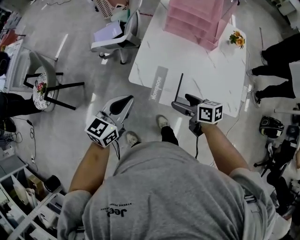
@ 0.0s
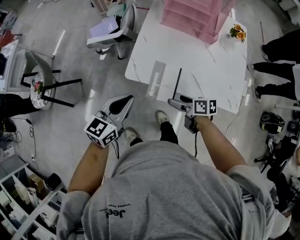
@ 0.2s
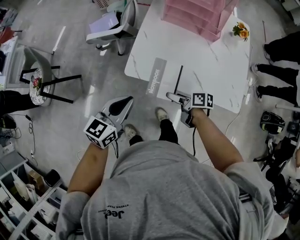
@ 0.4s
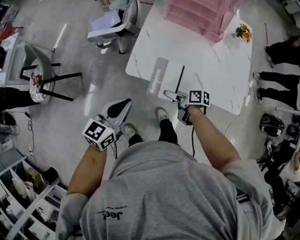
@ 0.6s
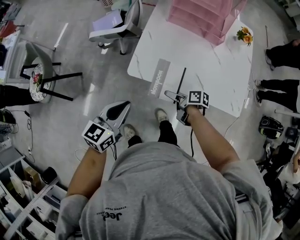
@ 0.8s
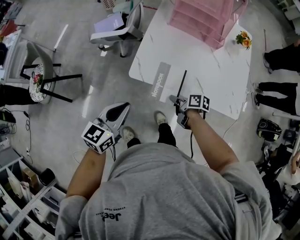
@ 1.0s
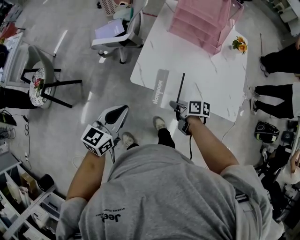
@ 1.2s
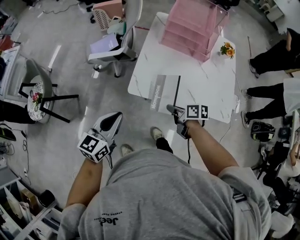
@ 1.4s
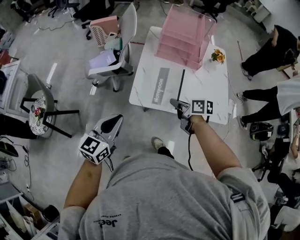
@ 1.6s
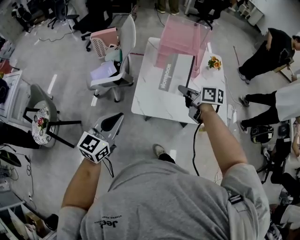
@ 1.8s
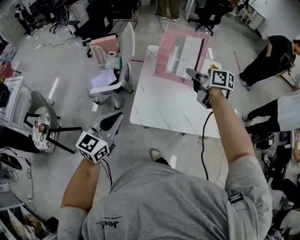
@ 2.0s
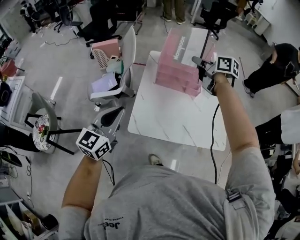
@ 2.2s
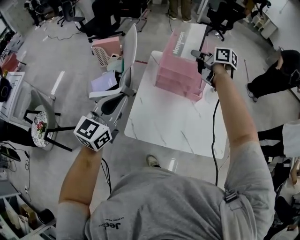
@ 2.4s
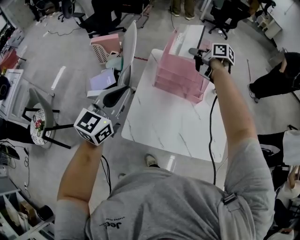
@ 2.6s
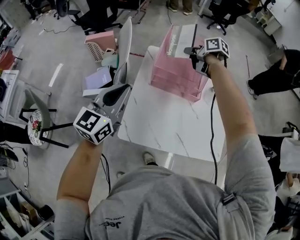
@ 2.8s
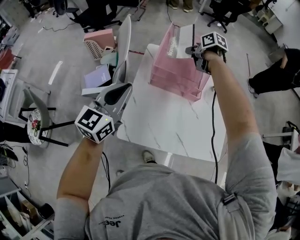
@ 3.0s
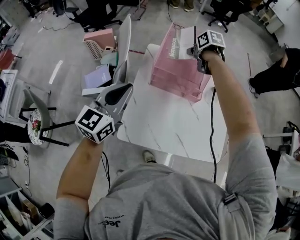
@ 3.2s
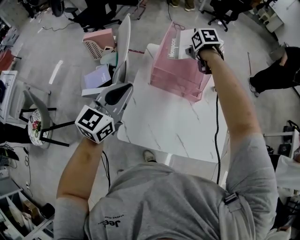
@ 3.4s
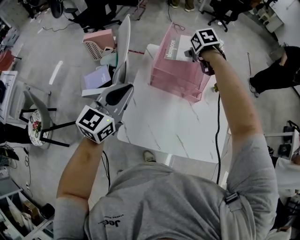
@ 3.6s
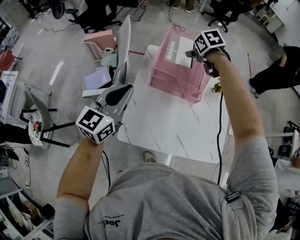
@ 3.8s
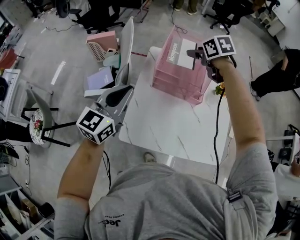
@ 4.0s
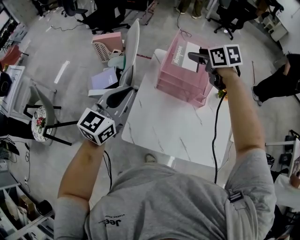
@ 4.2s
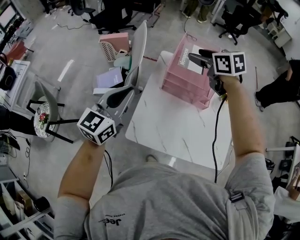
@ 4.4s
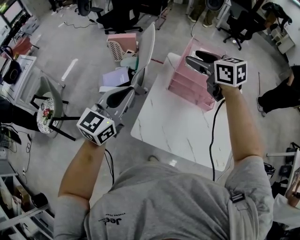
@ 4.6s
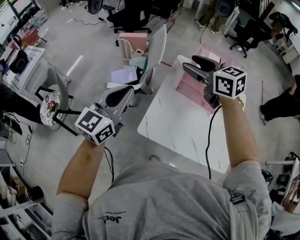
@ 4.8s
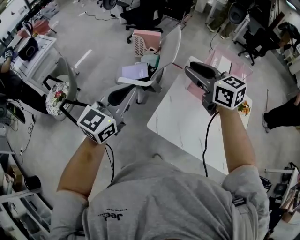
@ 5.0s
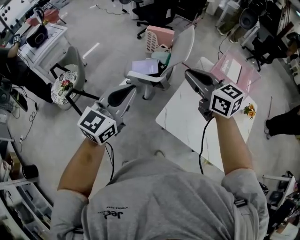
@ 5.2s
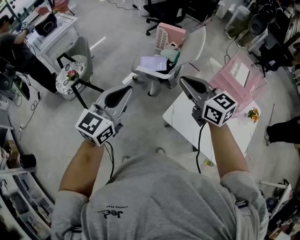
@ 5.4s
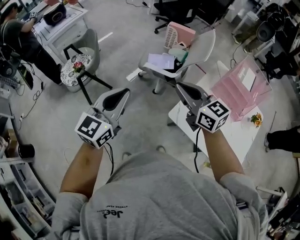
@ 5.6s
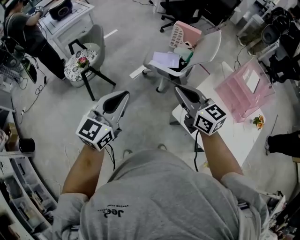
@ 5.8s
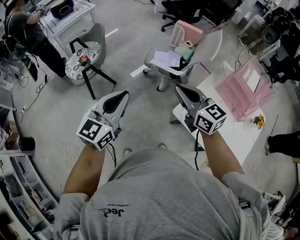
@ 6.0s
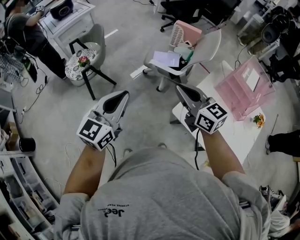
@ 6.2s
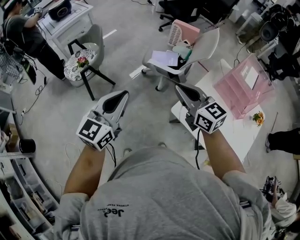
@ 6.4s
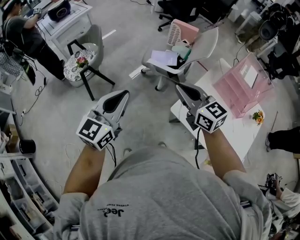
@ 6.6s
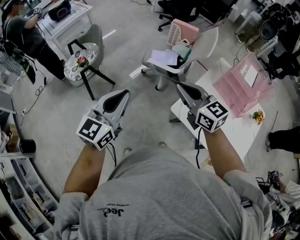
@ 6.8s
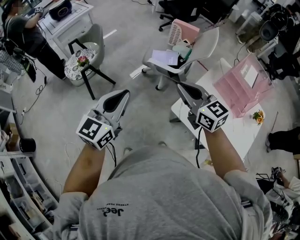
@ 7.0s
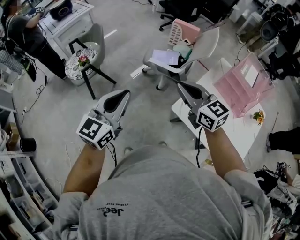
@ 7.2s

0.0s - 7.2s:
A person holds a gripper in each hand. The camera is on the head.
0.0s - 1.4s: The right gripper goes downward and returns, about 15 cm each way, and closes up. Meanwhile the left gripper goes approximately 5 cm to the left.
1.4s - 2.8s: The left gripper is displaced forward, upward and to the right by roughly 35 cm, while the right gripper shifts roughly 50 cm forward and upward.
2.8s - 4.4s: The right gripper moves upward, backward and to the left, about 15 cm, rolls counterclockwise, seen from behind, by about 40 degrees, and opens its fingers.
4.4s - 5.8s: The right gripper moves approximately 50 cm, rotates approximately 40 degrees, and closes its fingers; the left gripper shifts by approximately 40 cm, and changes its angle by roughly 30 degrees.
5.8s - 7.2s: There are only small adjustments of the grippers.

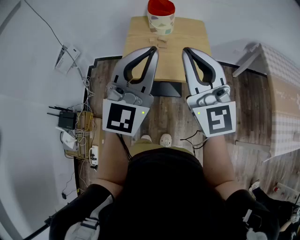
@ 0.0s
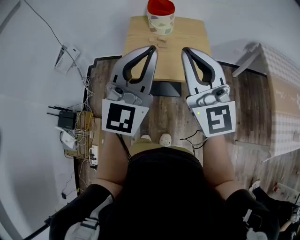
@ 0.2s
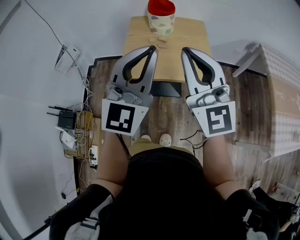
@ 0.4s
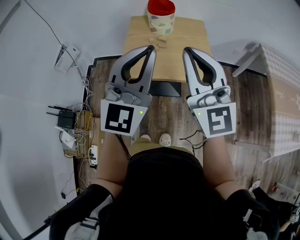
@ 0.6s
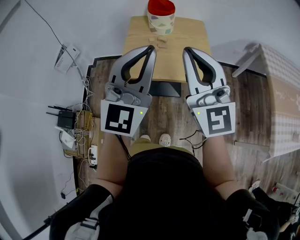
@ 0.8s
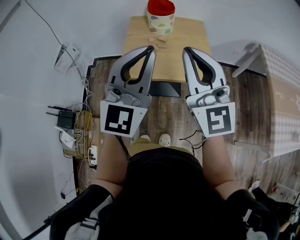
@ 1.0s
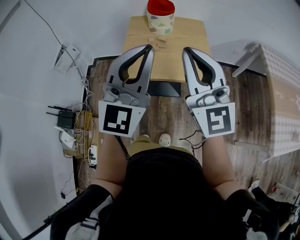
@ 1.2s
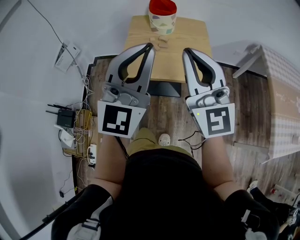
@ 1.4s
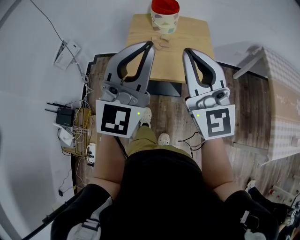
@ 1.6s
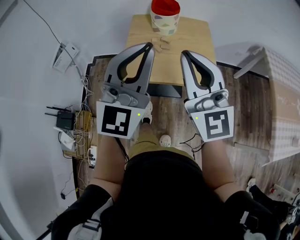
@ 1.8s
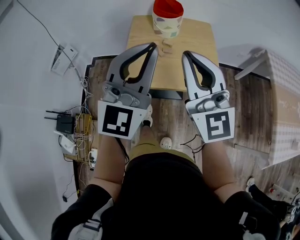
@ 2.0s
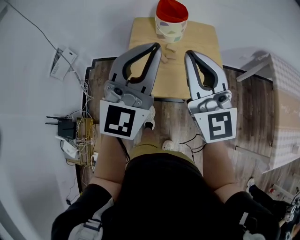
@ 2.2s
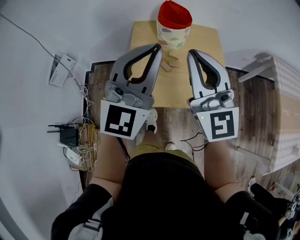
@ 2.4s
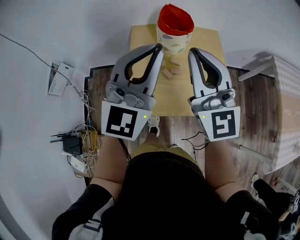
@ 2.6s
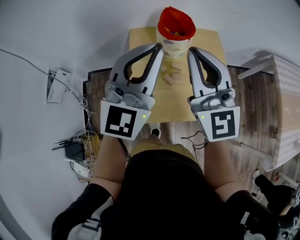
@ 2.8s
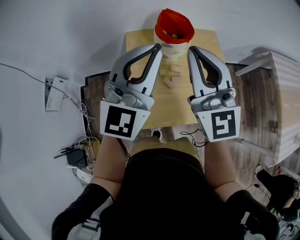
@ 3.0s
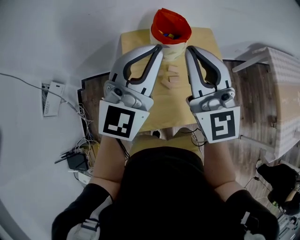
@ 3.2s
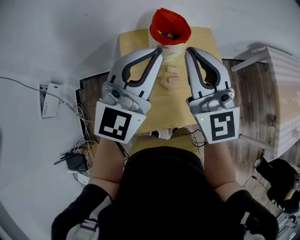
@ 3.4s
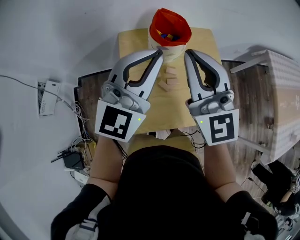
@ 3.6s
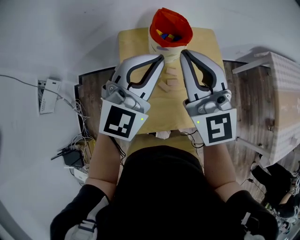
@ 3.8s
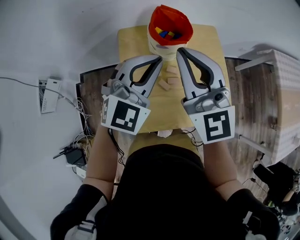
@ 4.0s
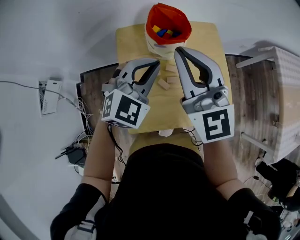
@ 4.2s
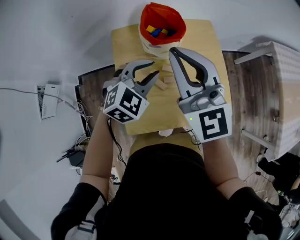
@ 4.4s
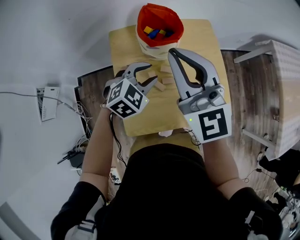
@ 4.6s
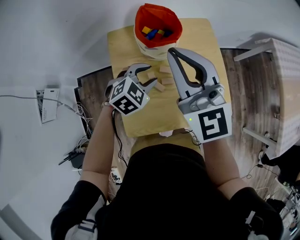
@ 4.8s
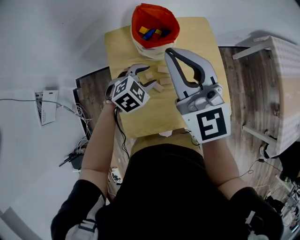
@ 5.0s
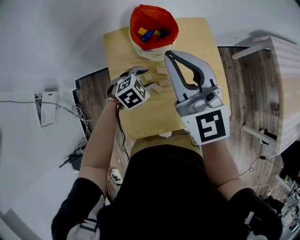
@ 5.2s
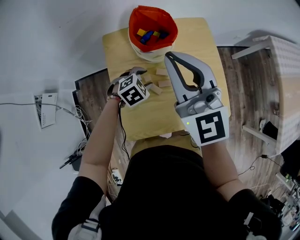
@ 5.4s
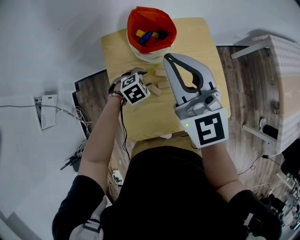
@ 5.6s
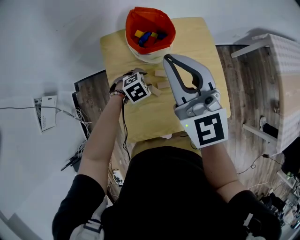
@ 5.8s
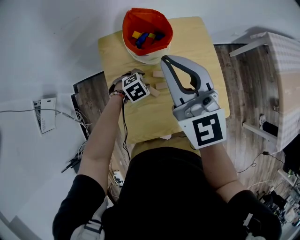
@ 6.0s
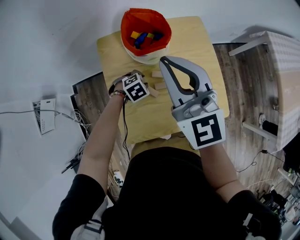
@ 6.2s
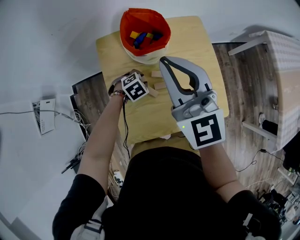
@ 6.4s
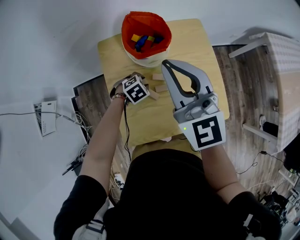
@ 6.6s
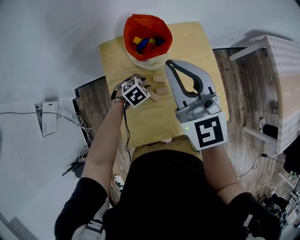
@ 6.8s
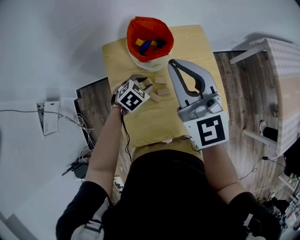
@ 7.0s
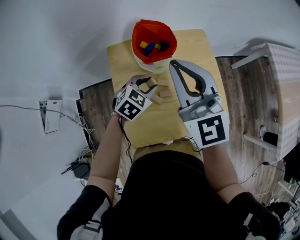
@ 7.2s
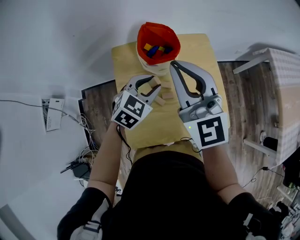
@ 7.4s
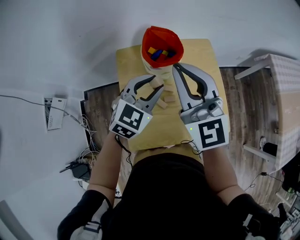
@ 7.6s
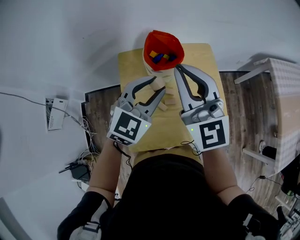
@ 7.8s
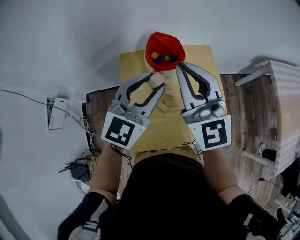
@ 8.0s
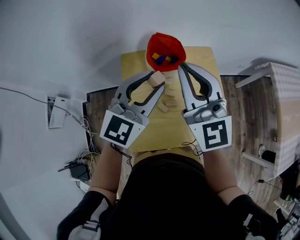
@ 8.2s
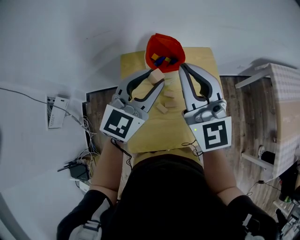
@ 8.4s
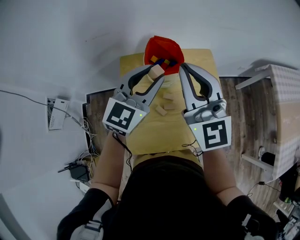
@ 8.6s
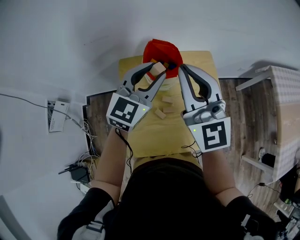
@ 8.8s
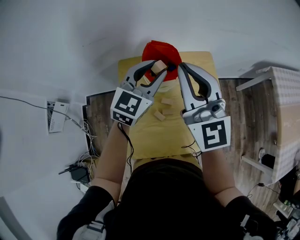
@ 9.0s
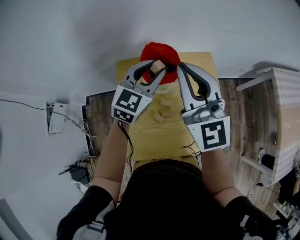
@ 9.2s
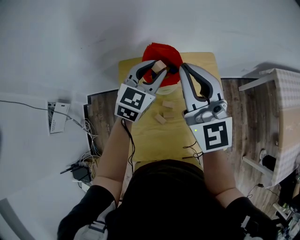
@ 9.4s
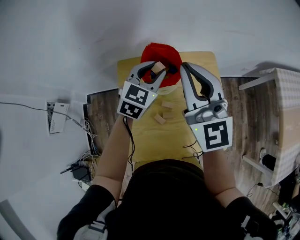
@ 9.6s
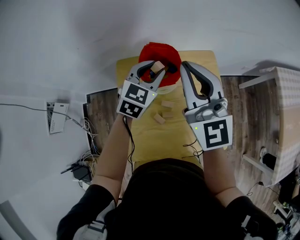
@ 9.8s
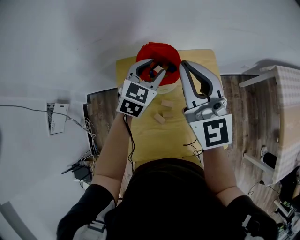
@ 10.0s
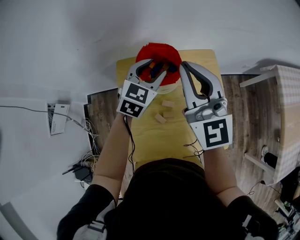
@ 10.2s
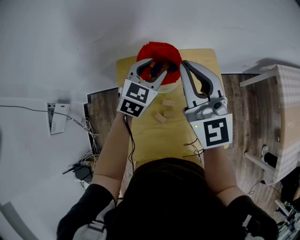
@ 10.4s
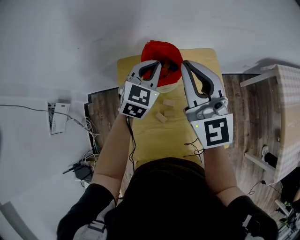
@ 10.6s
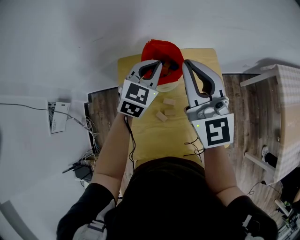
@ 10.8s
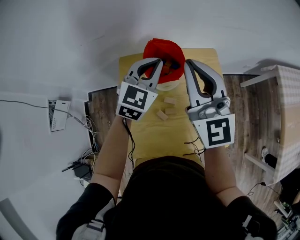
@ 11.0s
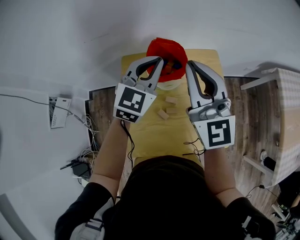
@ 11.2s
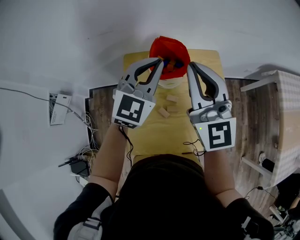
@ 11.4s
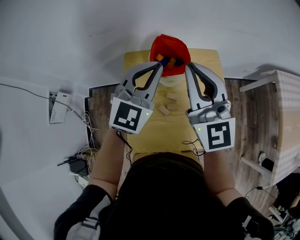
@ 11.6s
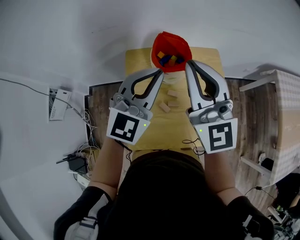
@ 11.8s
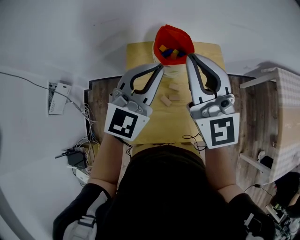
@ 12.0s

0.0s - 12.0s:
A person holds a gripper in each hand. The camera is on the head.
0.0s - 1.6s: There are only small adjustments of the grippers.
1.6s - 3.0s: The grippers both shift forward by some 30 cm.
3.0s - 4.4s: The left gripper shifts roughly 20 cm downward, and angles its fingers downward, by approximately 50 degrees. The right gripper goes about 10 cm forward and downward.
4.4s - 6.0s: The left gripper shifts some 25 cm downward, and tips its fingers downward by roughly 40 degrees.
6.0s - 7.6s: The left gripper is displaced upward by some 25 cm, and angles its fingers upward, by some 40 degrees.
7.6s - 9.0s: The right gripper changes place by about 5 cm. The left gripper is displaced forward and upward by approximately 10 cm.
9.0s - 10.4s: The right gripper moves approximately 5 cm. The left gripper goes about 10 cm downward and forward.
10.4s - 12.0s: The left gripper moves backward and upward, approximately 20 cm, changes its angle by roughly 30 degrees, and closes its fingers. Meanwhile the right gripper moves backward, roughly 10 cm.

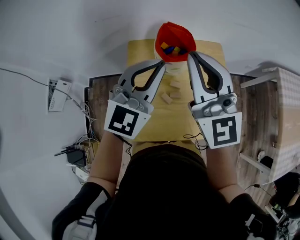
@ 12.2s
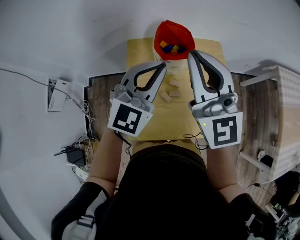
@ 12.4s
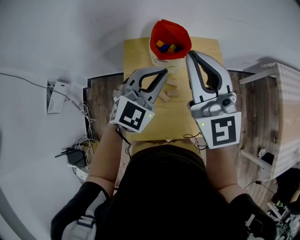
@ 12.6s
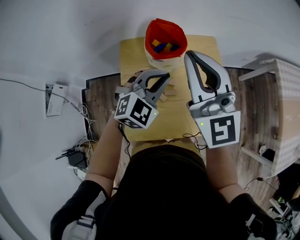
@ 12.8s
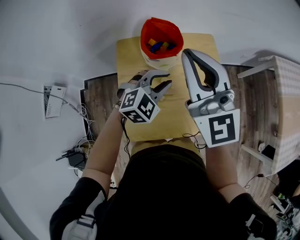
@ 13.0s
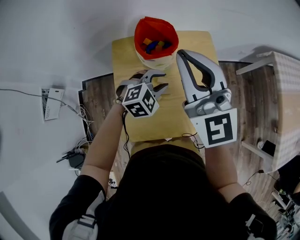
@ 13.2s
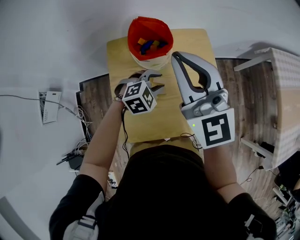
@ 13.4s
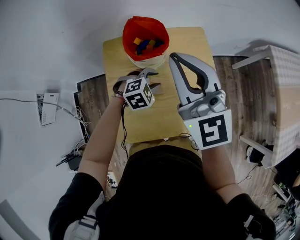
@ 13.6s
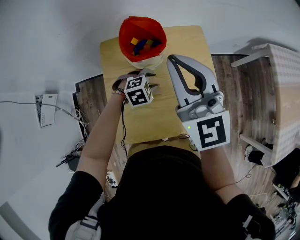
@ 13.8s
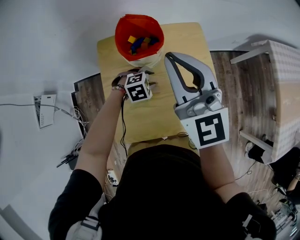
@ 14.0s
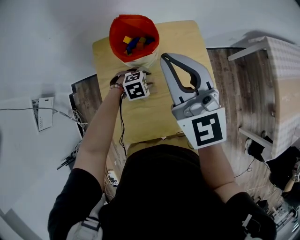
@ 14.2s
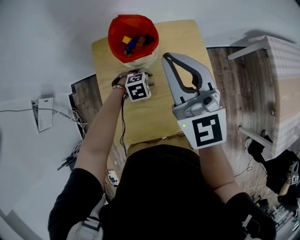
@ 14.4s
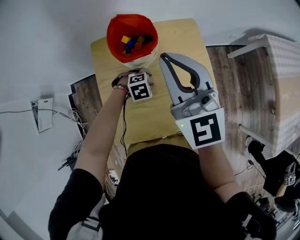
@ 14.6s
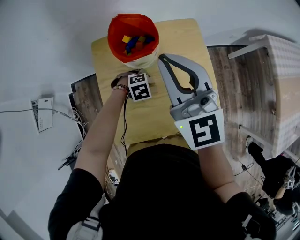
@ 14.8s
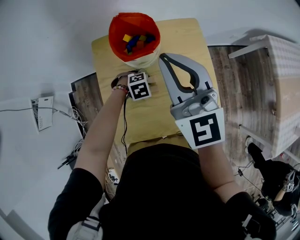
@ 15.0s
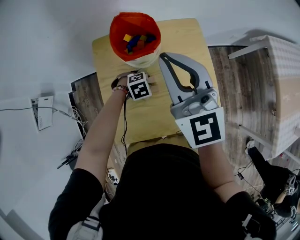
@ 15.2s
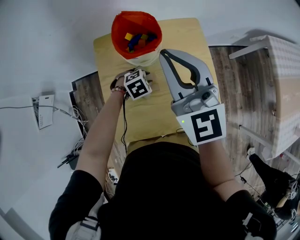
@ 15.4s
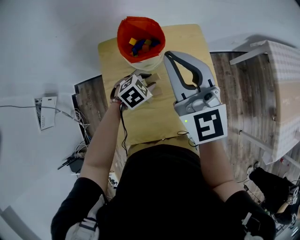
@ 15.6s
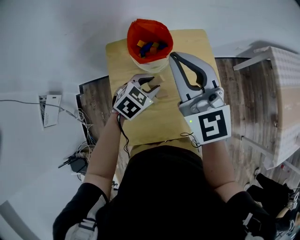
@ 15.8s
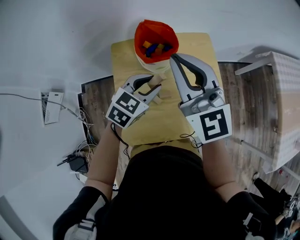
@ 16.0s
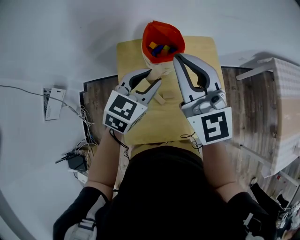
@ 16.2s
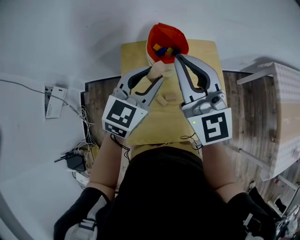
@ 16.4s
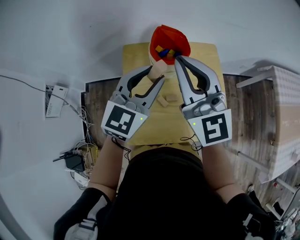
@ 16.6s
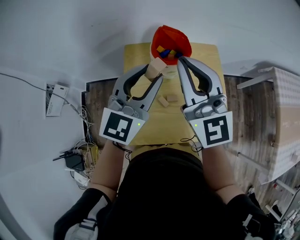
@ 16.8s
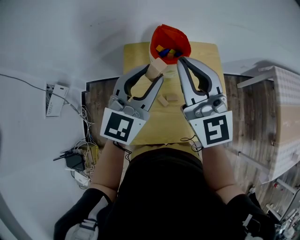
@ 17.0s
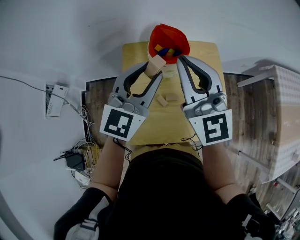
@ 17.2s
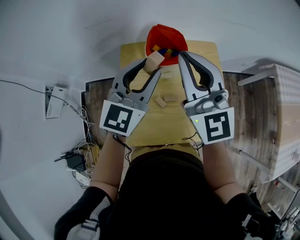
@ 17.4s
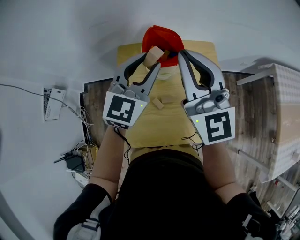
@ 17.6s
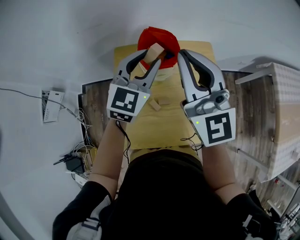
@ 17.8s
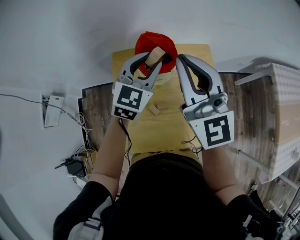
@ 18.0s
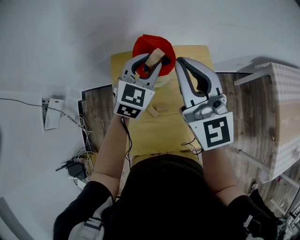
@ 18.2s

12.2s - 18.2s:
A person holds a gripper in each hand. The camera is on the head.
12.2s - 13.8s: The right gripper goes approximately 10 cm downward and to the right. The left gripper travels downward by some 35 cm, angles its fingers downward, by some 60 degrees, and opens its fingers.
13.8s - 15.2s: The left gripper travels downward by approximately 5 cm.
15.2s - 16.6s: The left gripper travels upward by roughly 35 cm, and tips its fingers upward by some 60 degrees. The right gripper shifts by about 10 cm.
16.6s - 18.2s: The left gripper is displaced forward, downward and to the right by roughly 15 cm. Meanwhile the right gripper moves to the right and forward, some 10 cm.
